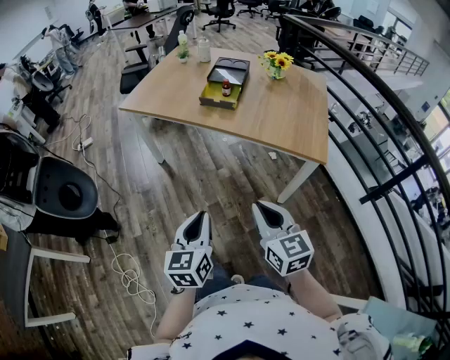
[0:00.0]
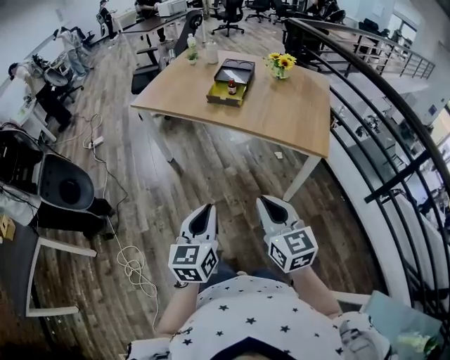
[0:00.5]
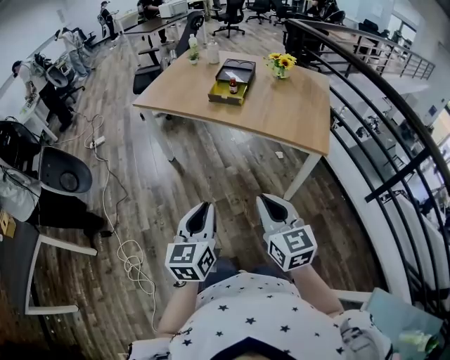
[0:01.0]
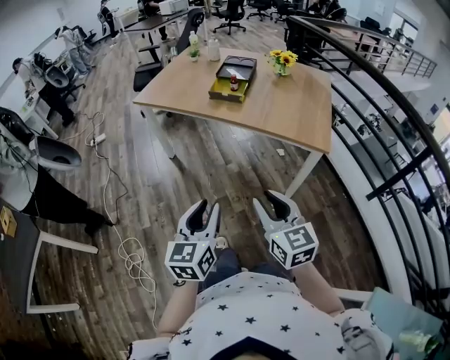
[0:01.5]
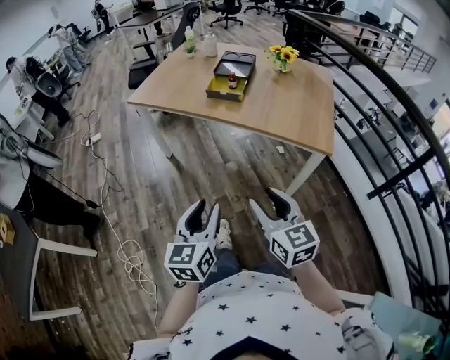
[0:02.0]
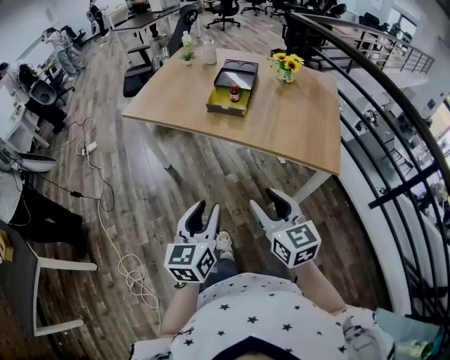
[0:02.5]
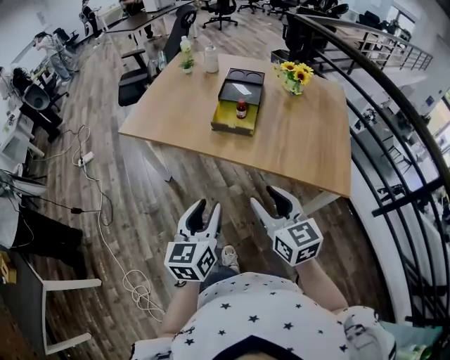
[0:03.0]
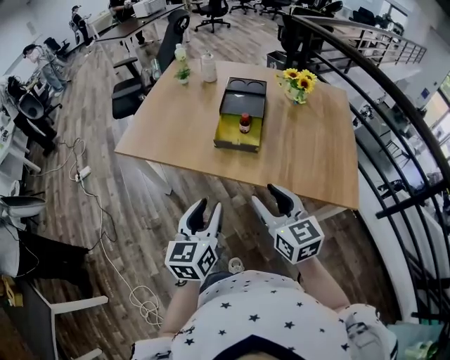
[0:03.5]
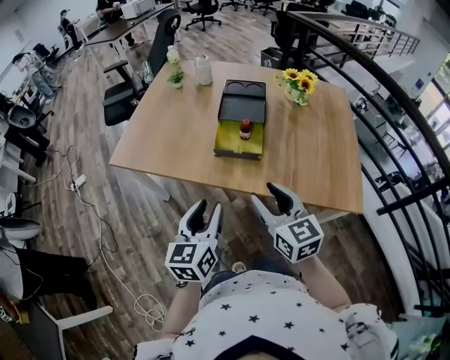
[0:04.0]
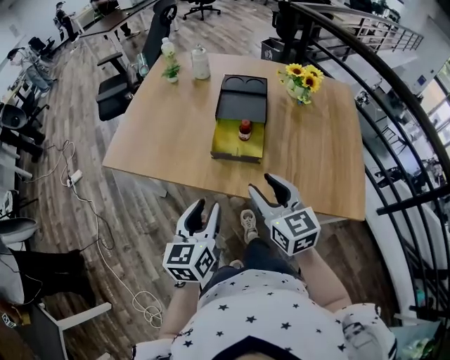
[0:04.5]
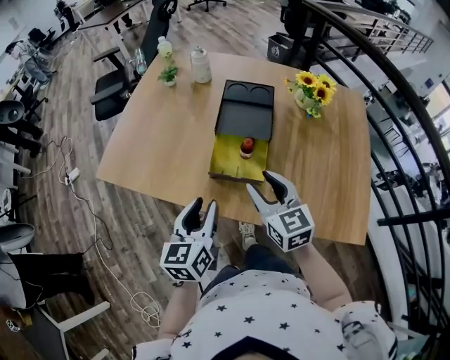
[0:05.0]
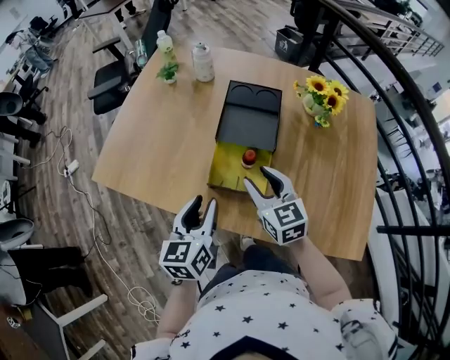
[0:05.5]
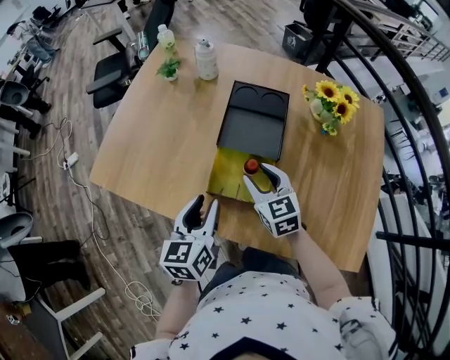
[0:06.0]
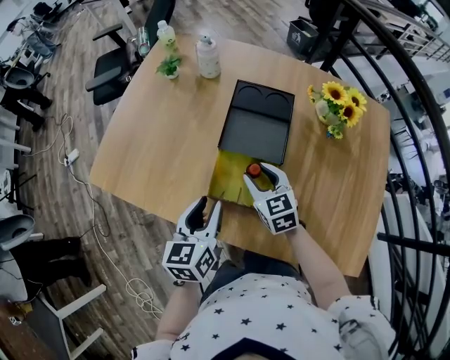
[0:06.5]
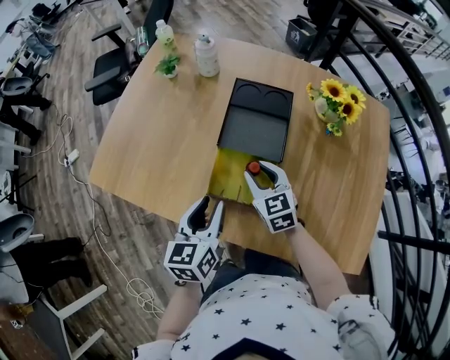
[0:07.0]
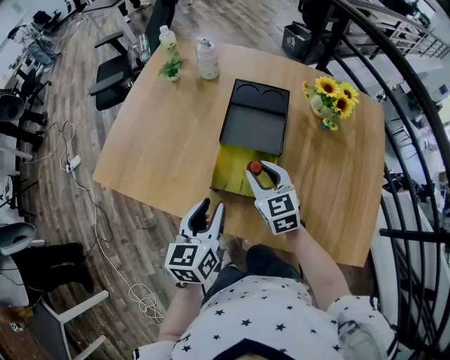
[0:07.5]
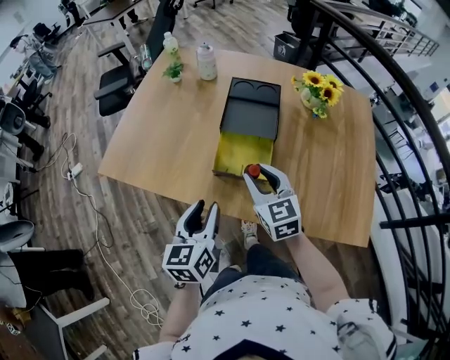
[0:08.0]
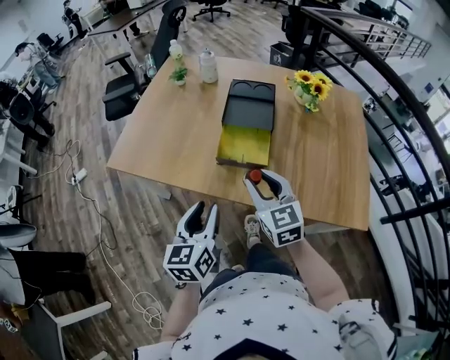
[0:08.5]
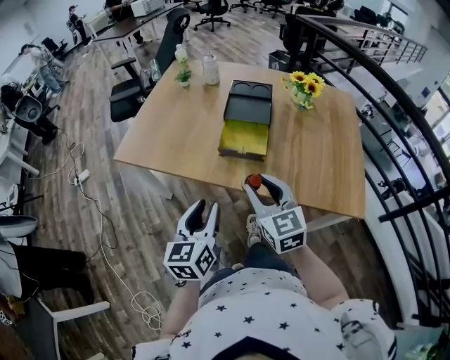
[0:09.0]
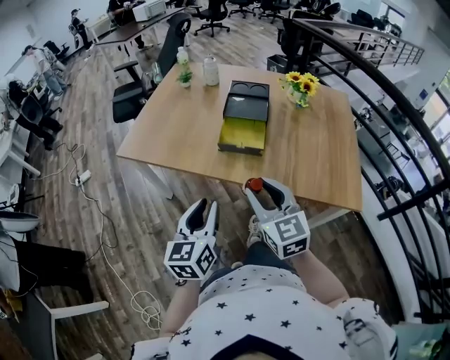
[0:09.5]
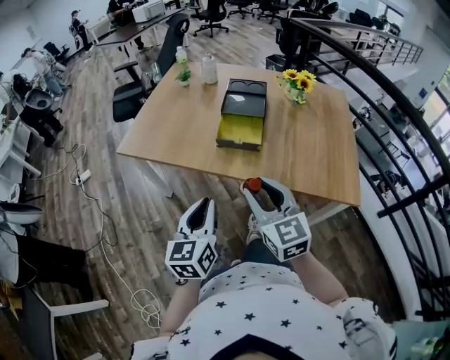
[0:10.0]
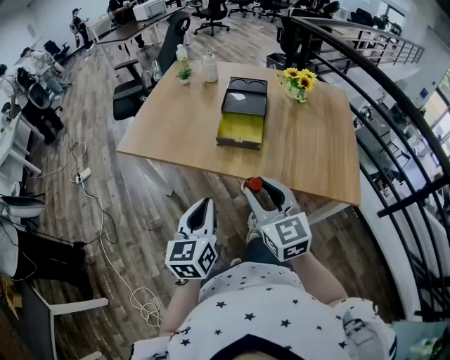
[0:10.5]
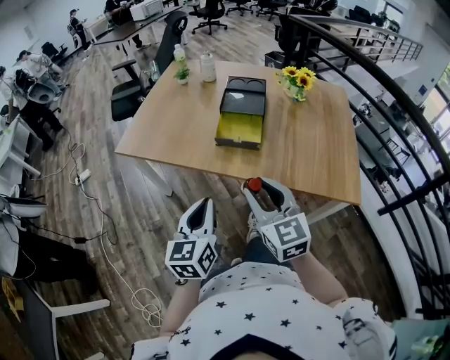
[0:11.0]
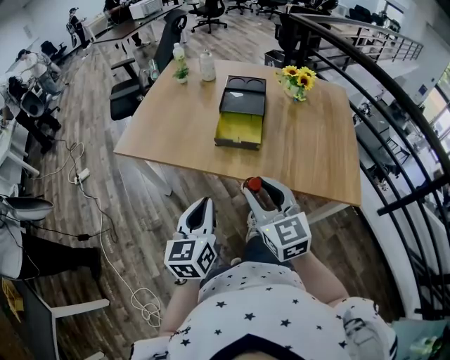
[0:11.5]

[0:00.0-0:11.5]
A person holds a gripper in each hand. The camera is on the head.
0:00.0 to 0:02.0: The left gripper opens. Meanwhile the right gripper opens.
0:02.0 to 0:04.0: The pair of grippers is taken forward, approximately 40 cm.
0:04.0 to 0:06.0: Both grippers travel together forward, roughly 25 cm.
0:06.0 to 0:07.5: The grippers stay close to where they were, moving slightly.
0:07.5 to 0:09.5: Both grippers move backward, roughly 30 cm.
0:09.5 to 0:11.5: The left gripper closes.

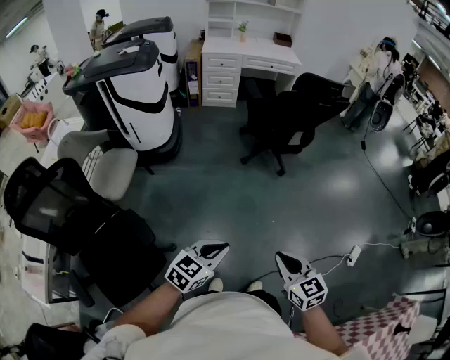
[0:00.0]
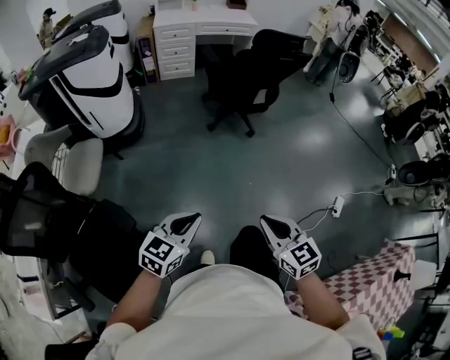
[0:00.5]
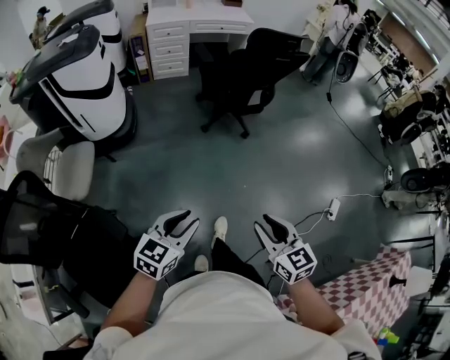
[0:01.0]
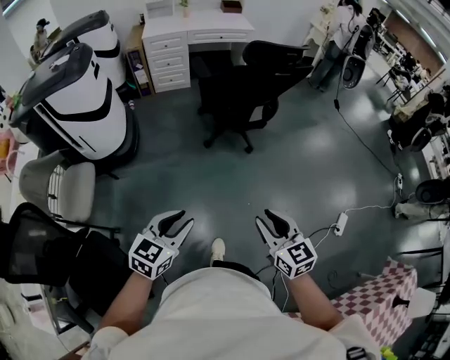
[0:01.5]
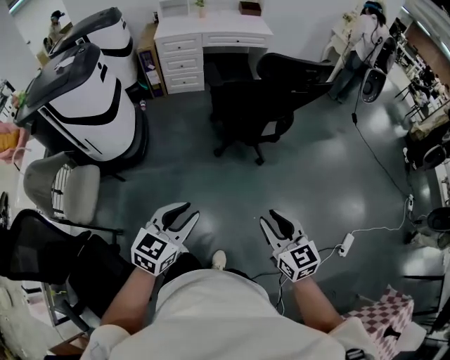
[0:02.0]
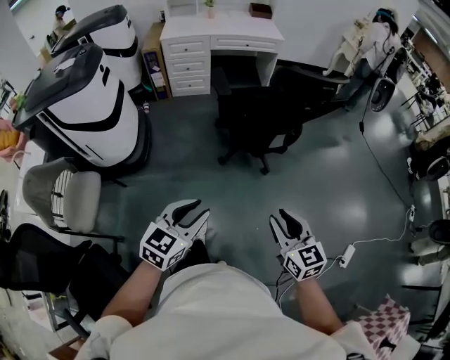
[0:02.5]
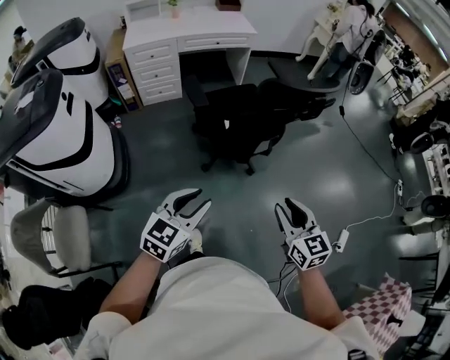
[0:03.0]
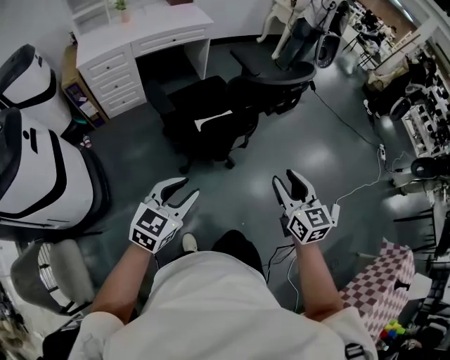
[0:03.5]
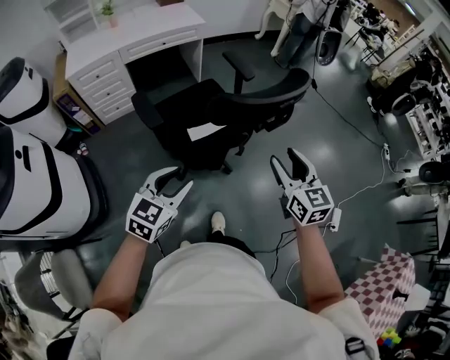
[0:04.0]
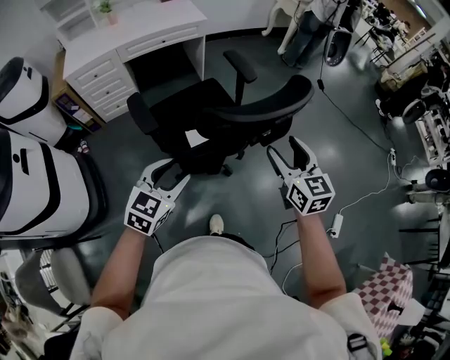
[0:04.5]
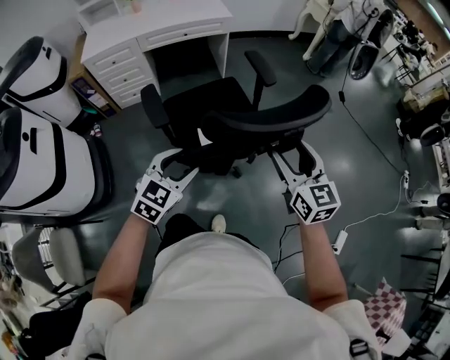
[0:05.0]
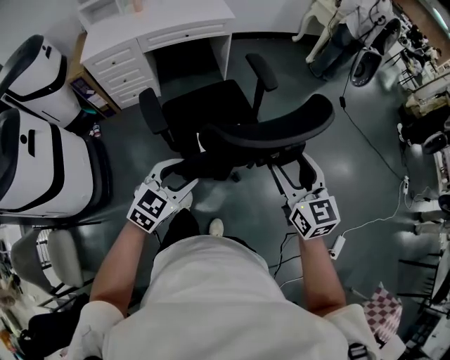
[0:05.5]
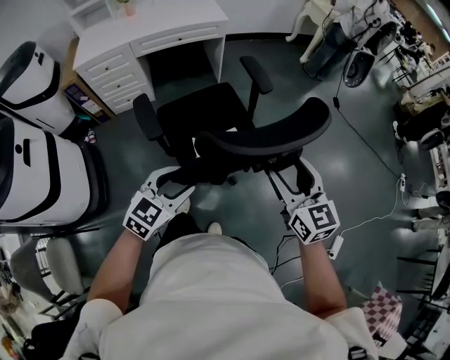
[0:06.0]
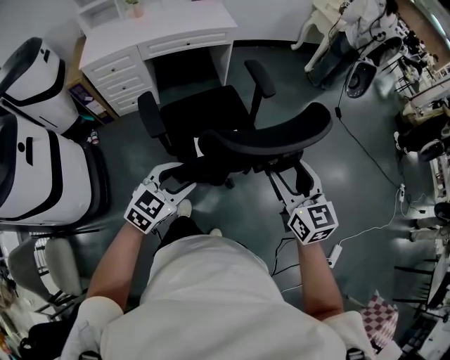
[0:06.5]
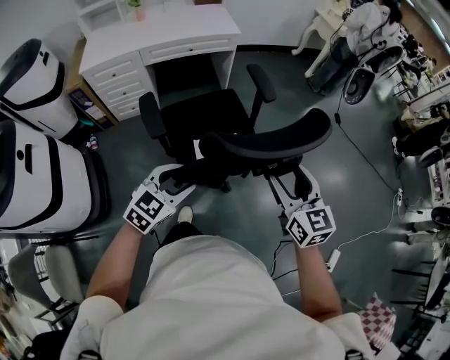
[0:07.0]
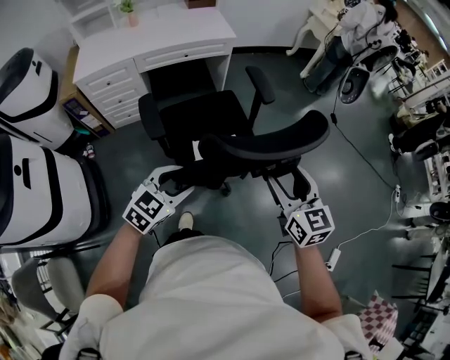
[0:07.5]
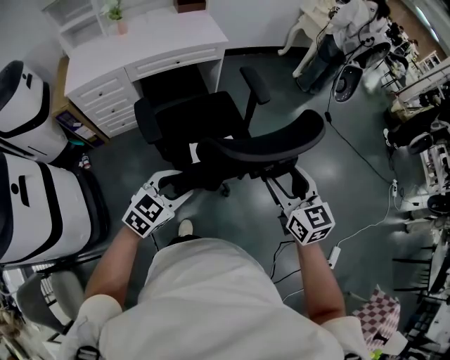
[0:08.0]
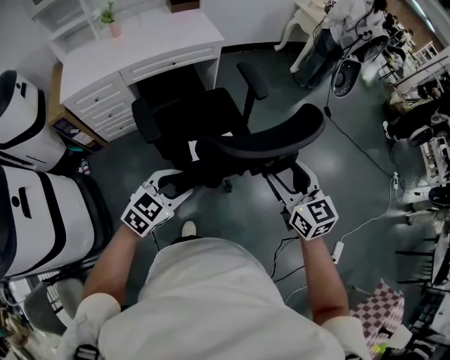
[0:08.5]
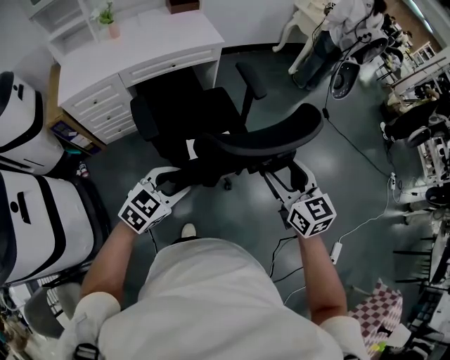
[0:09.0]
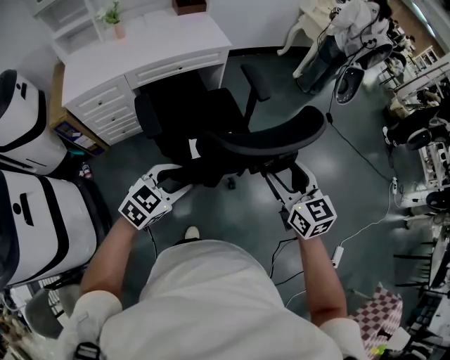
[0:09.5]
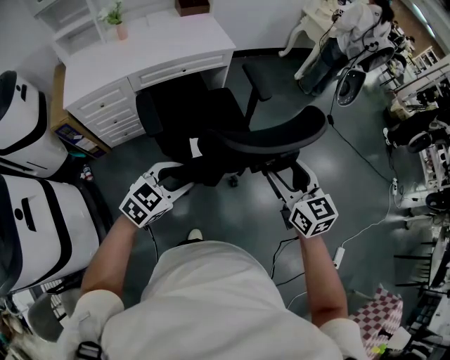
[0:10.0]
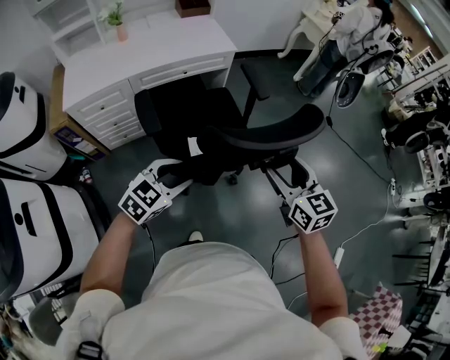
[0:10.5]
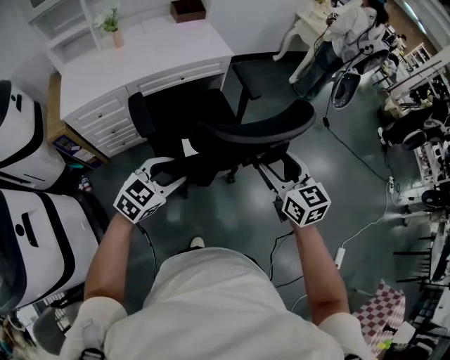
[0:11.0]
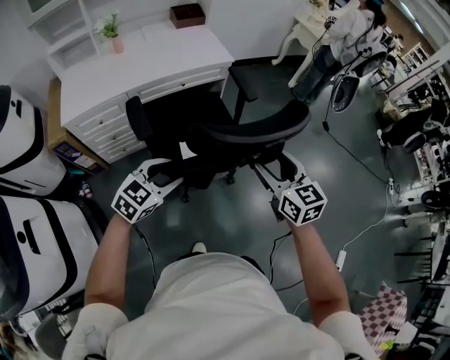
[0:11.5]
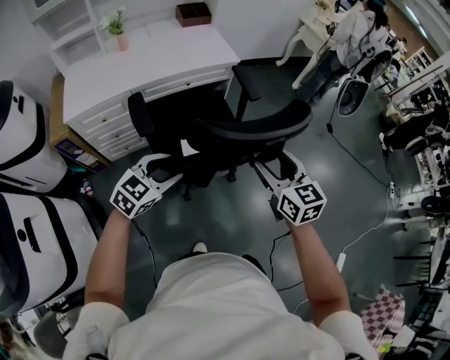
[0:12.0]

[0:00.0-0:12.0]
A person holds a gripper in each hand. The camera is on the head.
0:00.0 to 0:02.0: Both grippers move forward, approximately 30 cm. The left gripper opens its fingers, while the right gripper opens its fingers.
0:02.0 to 0:04.0: The two grippers travel together, roughly 40 cm. The left gripper turns by about 20 degrees. Meanwhile the right gripper swivels about 30 degrees, and opens its fingers.
0:04.0 to 0:06.0: The grippers both shift forward by roughly 10 cm.
0:06.0 to 0:08.0: The two grippers go about 15 cm forward and to the left.
0:08.0 to 0:10.0: The two grippers go some 10 cm to the left and forward.
0:10.0 to 0:12.0: Both grippers move to the left and forward, approximately 10 cm.

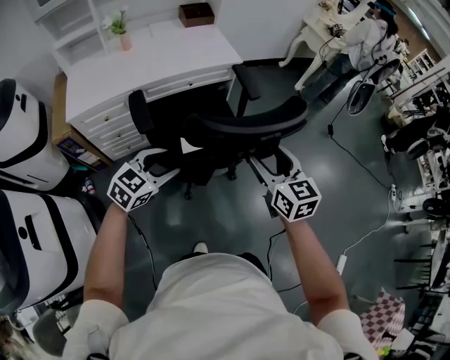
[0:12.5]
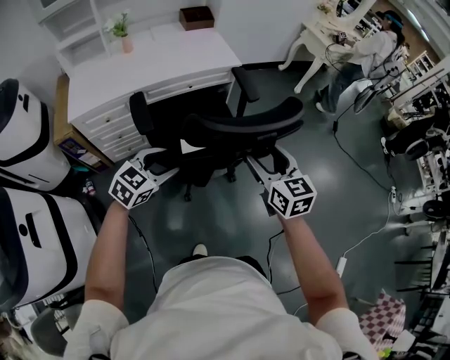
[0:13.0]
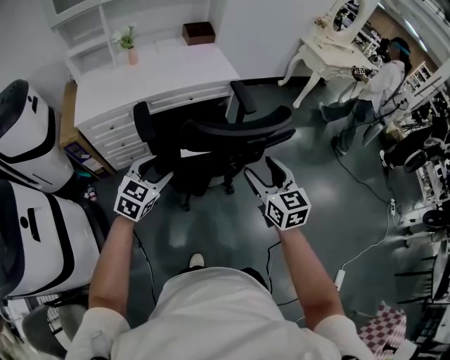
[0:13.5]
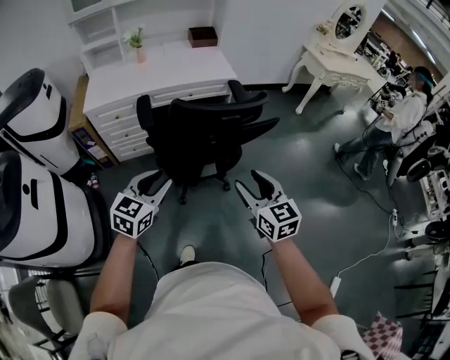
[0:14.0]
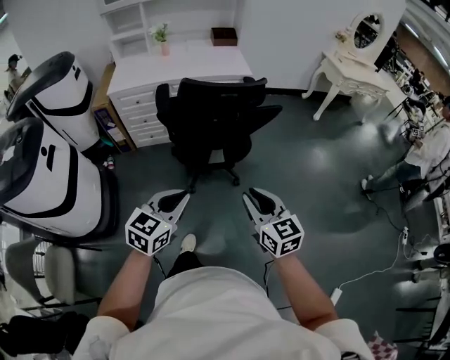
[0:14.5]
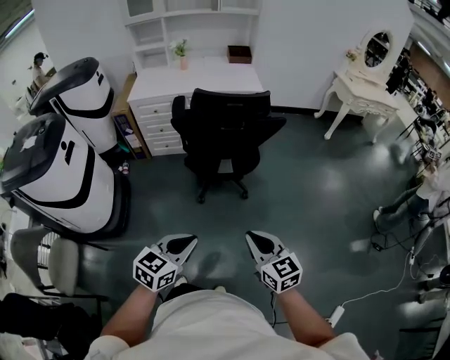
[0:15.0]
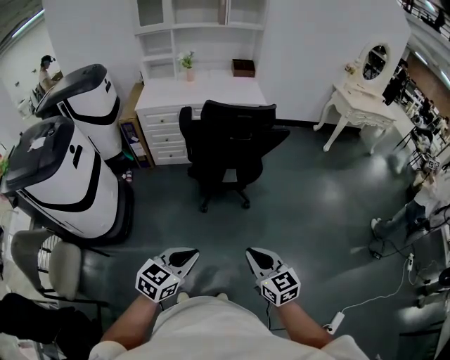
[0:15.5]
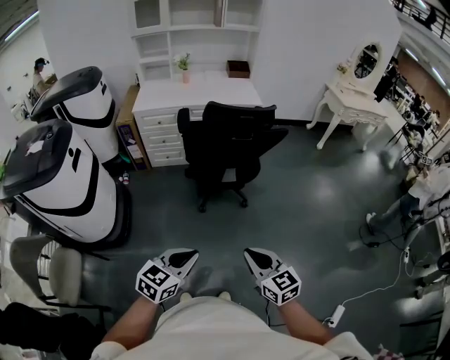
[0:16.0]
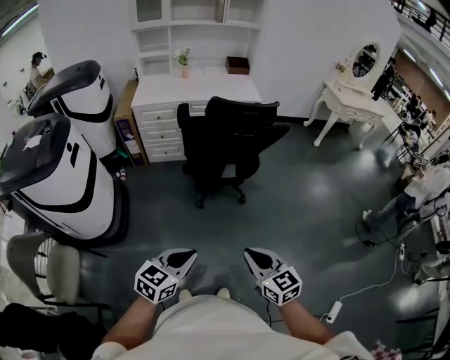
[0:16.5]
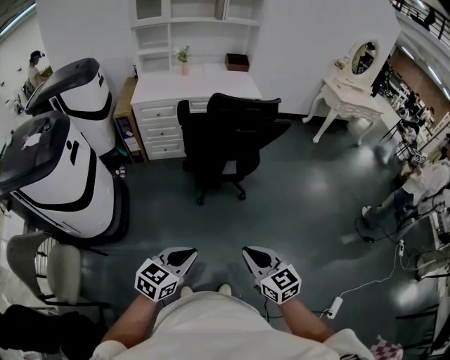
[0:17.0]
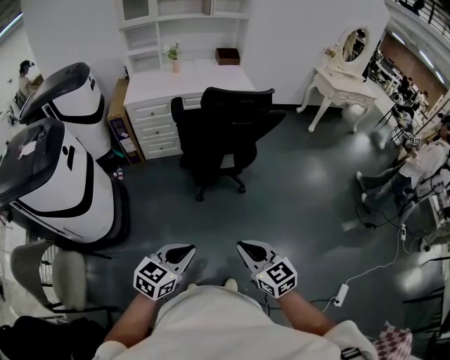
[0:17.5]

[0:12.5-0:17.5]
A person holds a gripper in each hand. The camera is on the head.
0:12.5 to 0:15.0: The two grippers travel together, about 50 cm. The left gripper turns by roughly 30 degrees, and closes up. Meanwhile the right gripper swivels roughly 30 degrees, and closes.
0:15.0 to 0:17.5: Both grippers travel together to the left and backward, roughly 15 cm.
